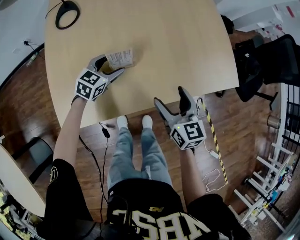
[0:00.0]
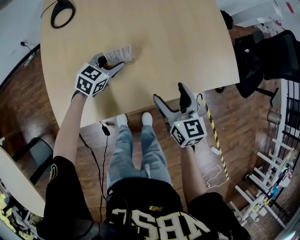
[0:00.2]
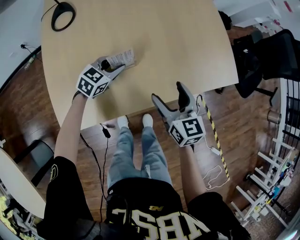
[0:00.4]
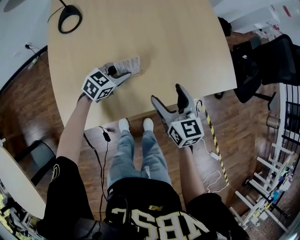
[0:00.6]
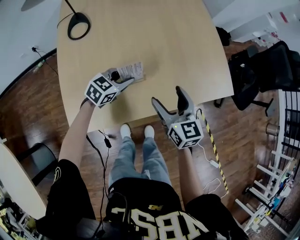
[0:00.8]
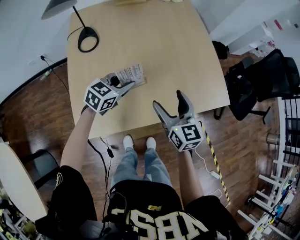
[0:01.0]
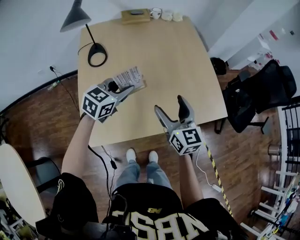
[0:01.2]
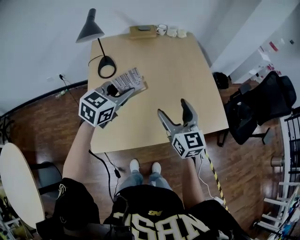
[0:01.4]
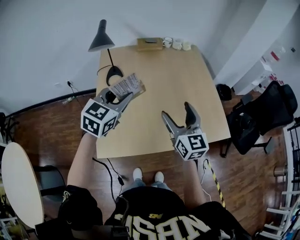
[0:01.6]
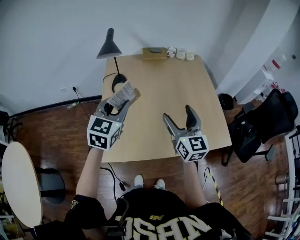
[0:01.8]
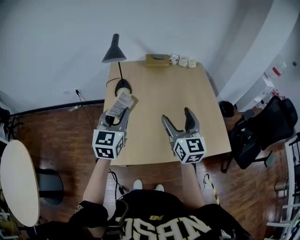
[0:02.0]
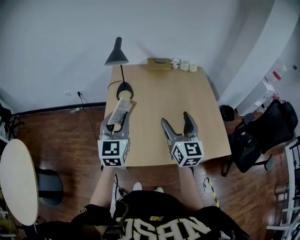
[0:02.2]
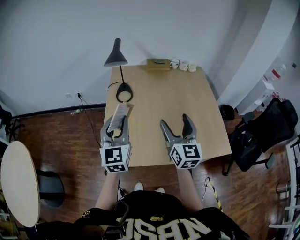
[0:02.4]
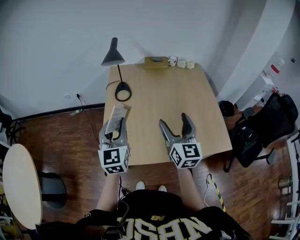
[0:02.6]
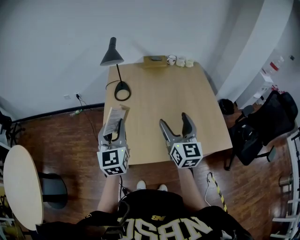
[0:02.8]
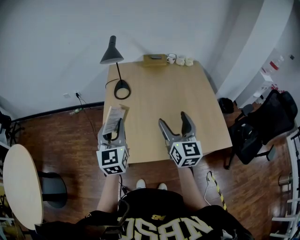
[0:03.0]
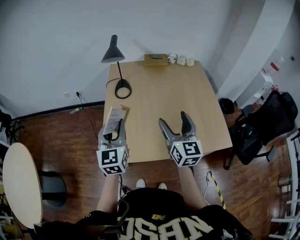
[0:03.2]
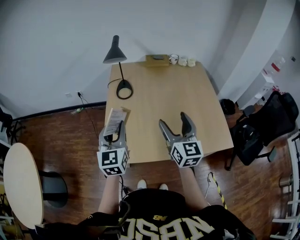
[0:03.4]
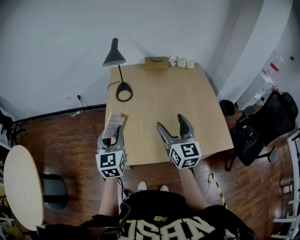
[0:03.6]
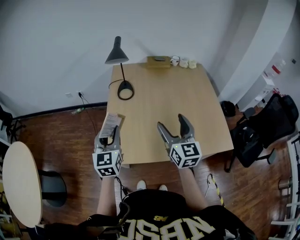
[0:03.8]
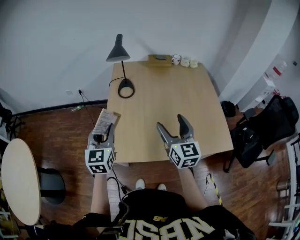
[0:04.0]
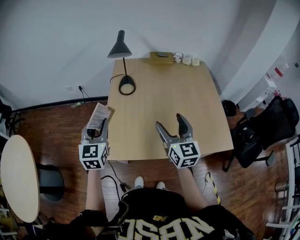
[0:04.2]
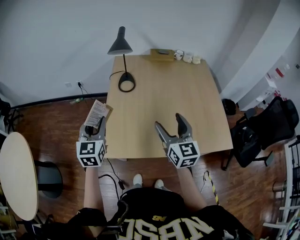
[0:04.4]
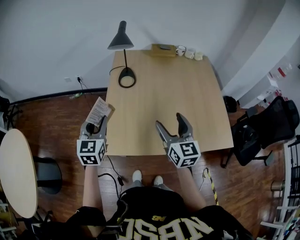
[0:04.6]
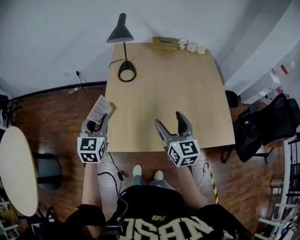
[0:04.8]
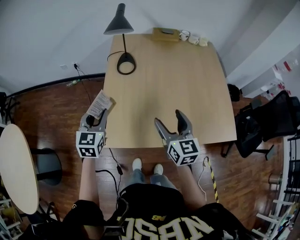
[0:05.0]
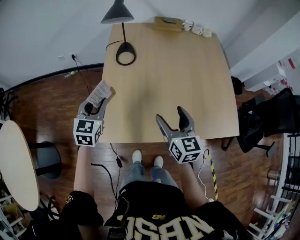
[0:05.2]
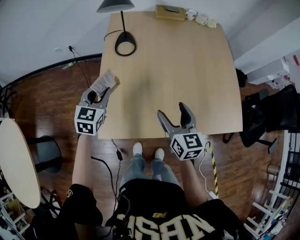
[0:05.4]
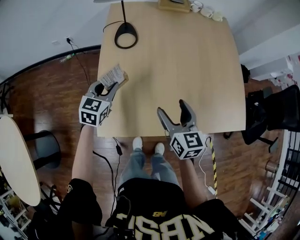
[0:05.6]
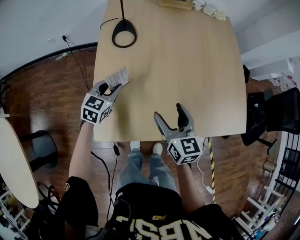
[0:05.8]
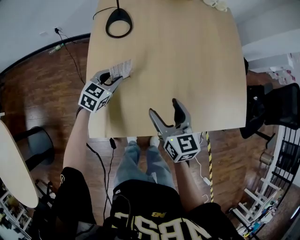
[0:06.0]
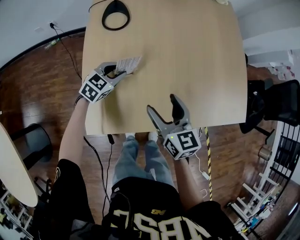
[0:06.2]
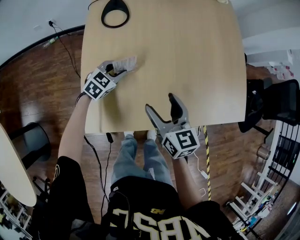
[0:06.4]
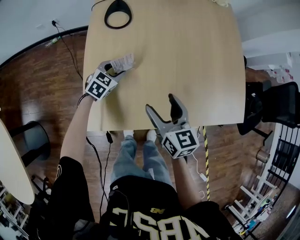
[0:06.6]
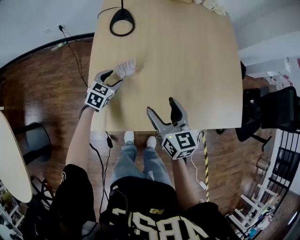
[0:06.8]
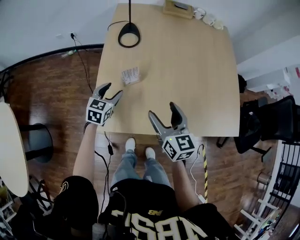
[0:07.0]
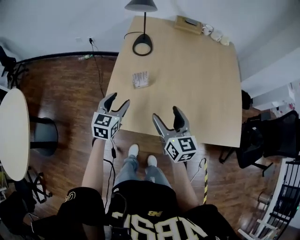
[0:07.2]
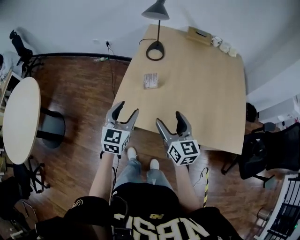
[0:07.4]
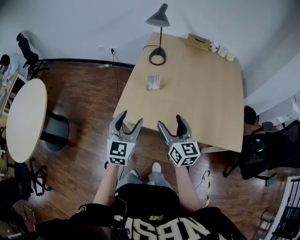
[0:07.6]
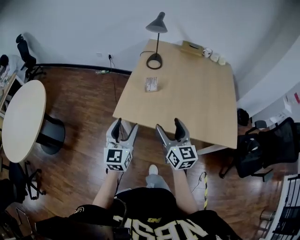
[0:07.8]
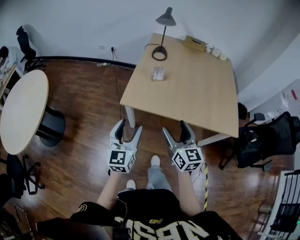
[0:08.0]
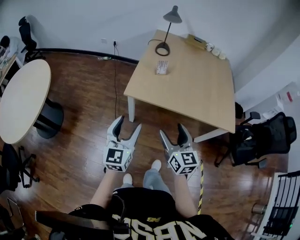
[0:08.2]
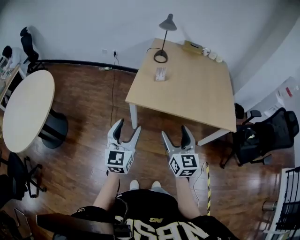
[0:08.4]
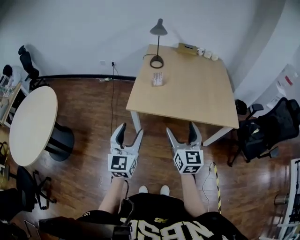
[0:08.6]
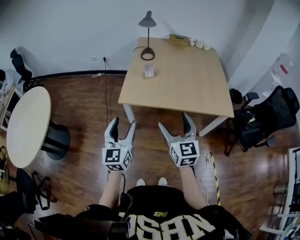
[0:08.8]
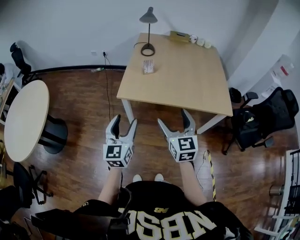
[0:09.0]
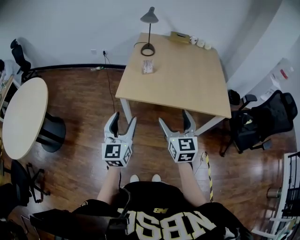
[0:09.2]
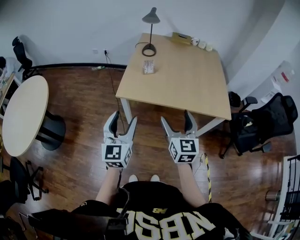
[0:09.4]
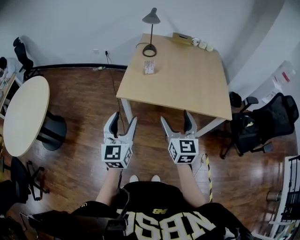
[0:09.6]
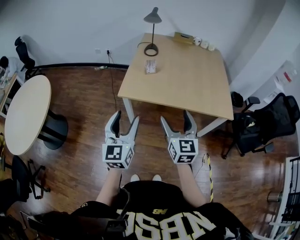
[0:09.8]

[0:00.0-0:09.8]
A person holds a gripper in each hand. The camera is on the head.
0:00.0 to 0:01.4: Both grippers move upward, about 30 cm. The right gripper swivels approximately 20 degrees. Meanwhile the left gripper closes up.
0:01.4 to 0:02.8: The right gripper goes about 5 cm upward, while the left gripper travels to the left, backward and upward by approximately 15 cm, and rotates approximately 50 degrees.
0:02.8 to 0:04.2: The left gripper goes about 10 cm to the left; the right gripper shifts by roughly 5 cm.
0:04.2 to 0:05.6: The left gripper travels downward and forward by roughly 25 cm, and turns by some 30 degrees, while the right gripper is displaced downward by some 15 cm.
0:05.6 to 0:07.0: The left gripper is displaced downward by about 10 cm.
0:07.0 to 0:08.4: Both grippers are carried backward, roughly 50 cm. The left gripper tips its fingers upward by some 30 degrees.
0:08.4 to 0:09.8: Both grippers travel together to the right, about 5 cm.

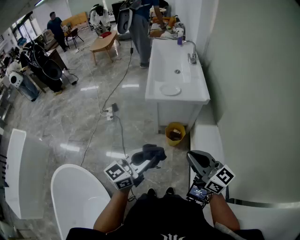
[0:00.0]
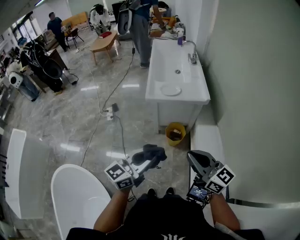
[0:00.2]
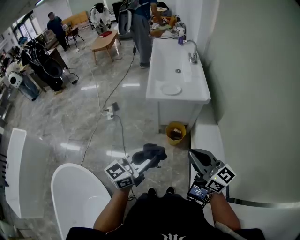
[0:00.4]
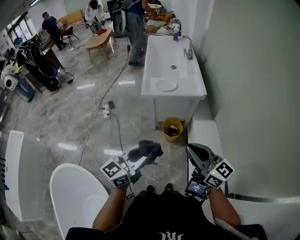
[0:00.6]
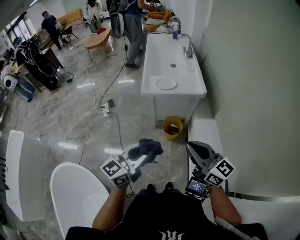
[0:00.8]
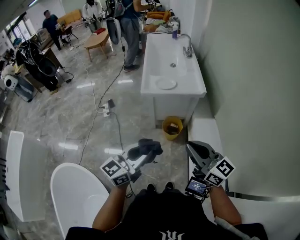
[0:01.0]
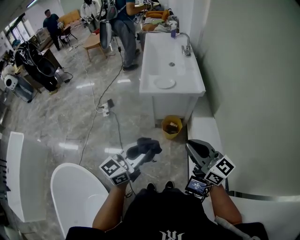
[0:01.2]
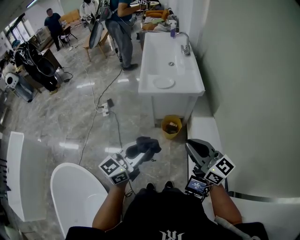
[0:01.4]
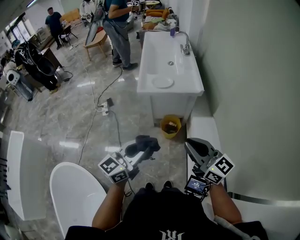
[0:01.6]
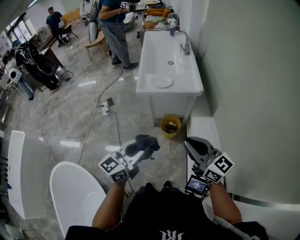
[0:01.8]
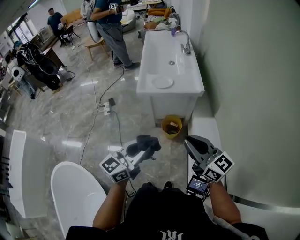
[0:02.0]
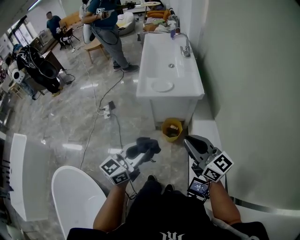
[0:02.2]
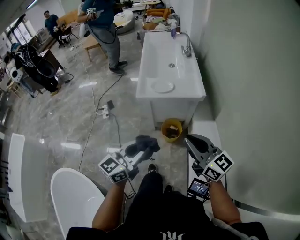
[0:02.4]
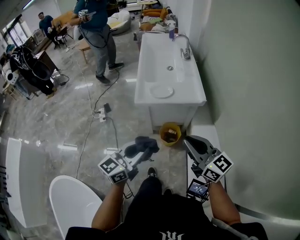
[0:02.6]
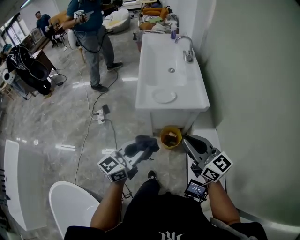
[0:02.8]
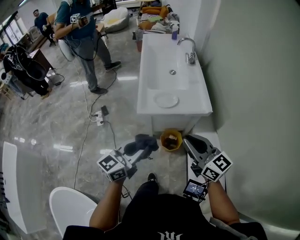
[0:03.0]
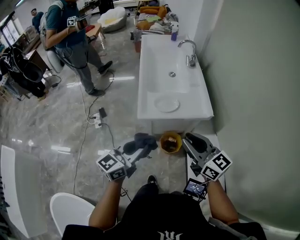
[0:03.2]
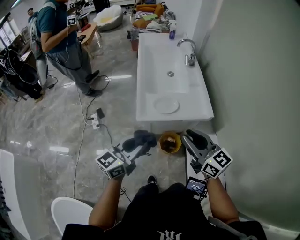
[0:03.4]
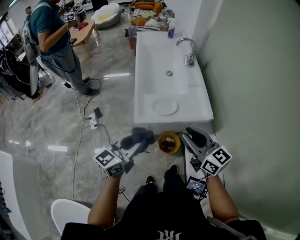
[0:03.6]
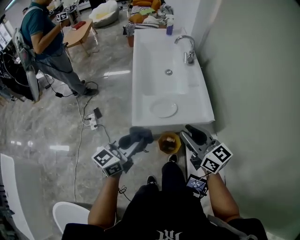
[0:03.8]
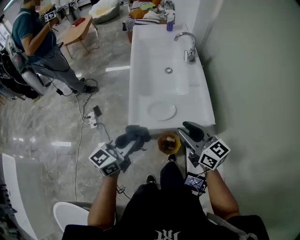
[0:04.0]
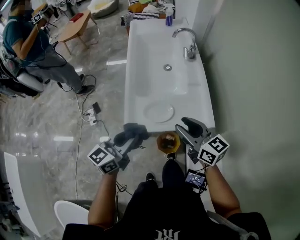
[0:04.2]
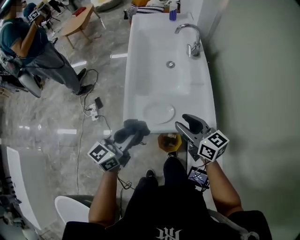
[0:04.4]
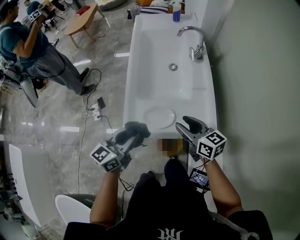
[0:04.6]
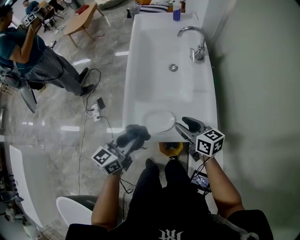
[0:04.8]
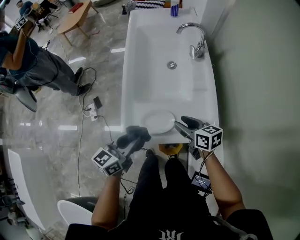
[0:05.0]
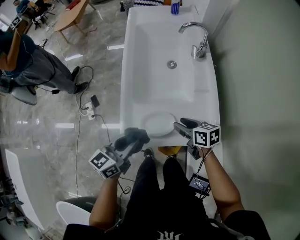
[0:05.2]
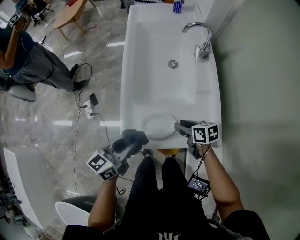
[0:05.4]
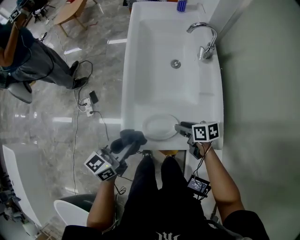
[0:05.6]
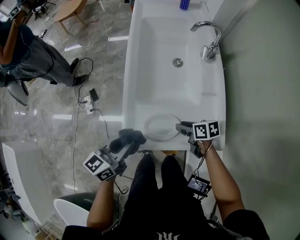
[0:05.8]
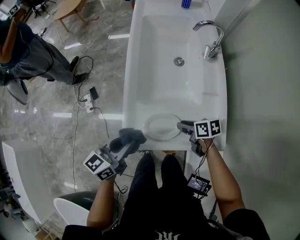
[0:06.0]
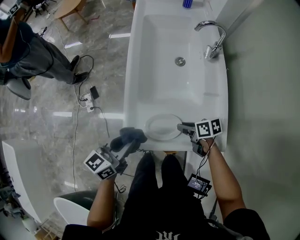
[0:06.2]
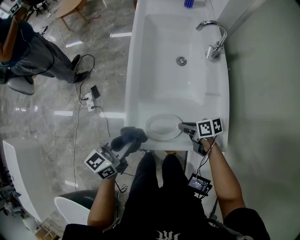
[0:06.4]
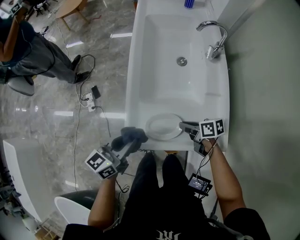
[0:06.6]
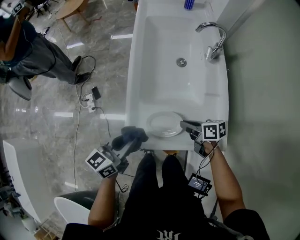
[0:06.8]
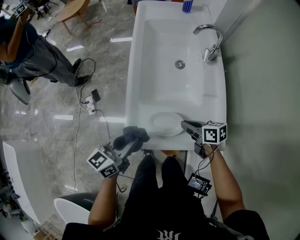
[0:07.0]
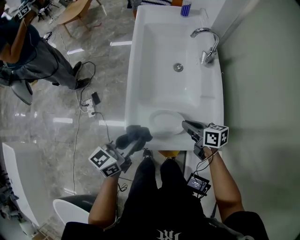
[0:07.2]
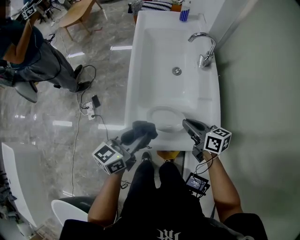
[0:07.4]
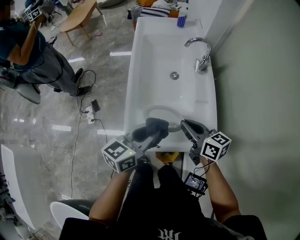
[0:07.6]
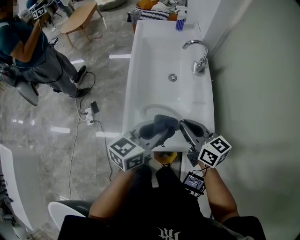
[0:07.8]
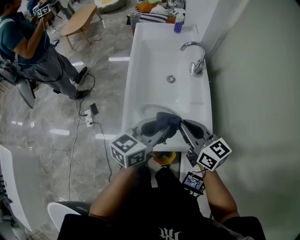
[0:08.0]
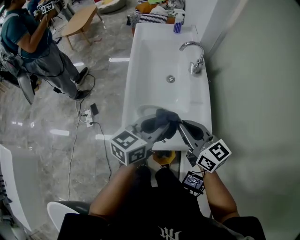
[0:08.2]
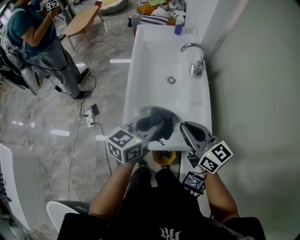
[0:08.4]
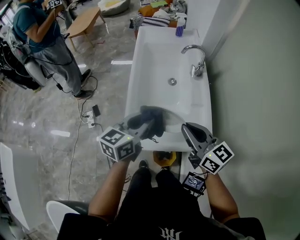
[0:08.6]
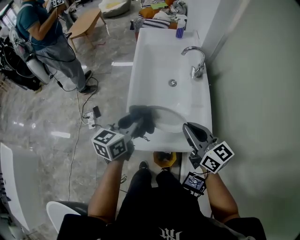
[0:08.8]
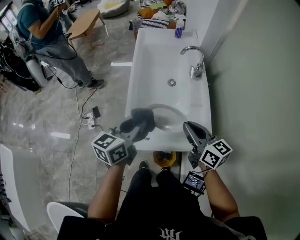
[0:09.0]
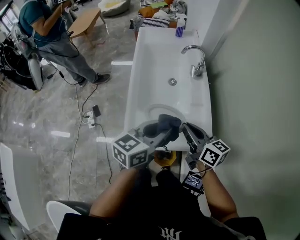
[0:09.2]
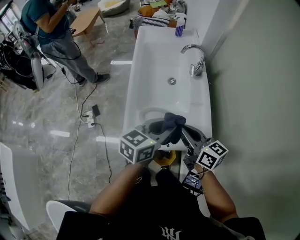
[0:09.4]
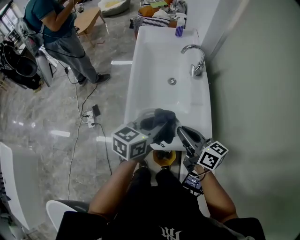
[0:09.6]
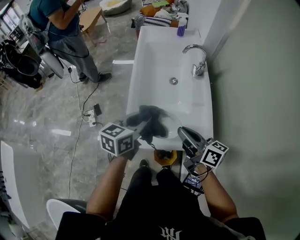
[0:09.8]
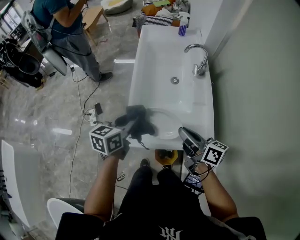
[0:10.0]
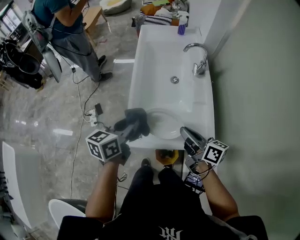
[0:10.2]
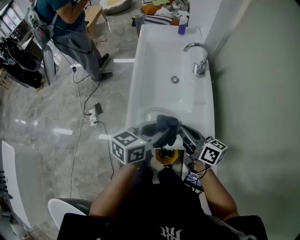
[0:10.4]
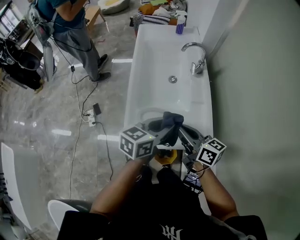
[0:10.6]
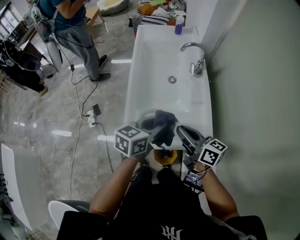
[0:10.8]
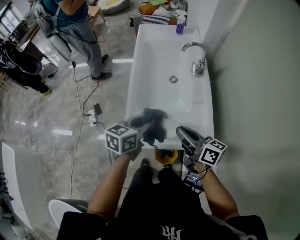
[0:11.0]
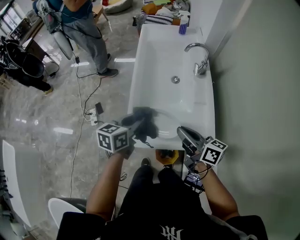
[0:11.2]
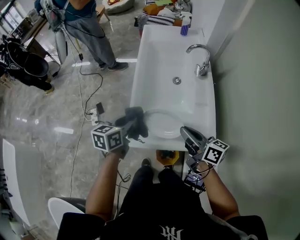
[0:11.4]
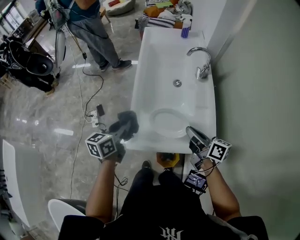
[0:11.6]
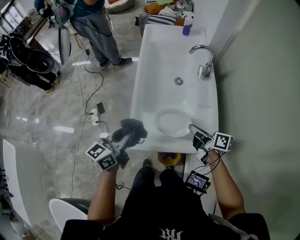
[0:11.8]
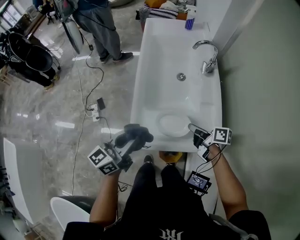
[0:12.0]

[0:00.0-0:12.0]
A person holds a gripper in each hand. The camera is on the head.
0:00.0 to 0:01.6: There are only small adjustments of the grippers.
0:01.6 to 0:03.0: Both grippers move forward, some 25 cm.
0:03.0 to 0:04.4: The two grippers go roughly 30 cm forward. The right gripper opens its fingers.
0:04.4 to 0:06.0: The right gripper is displaced downward and forward by roughly 25 cm, and points its fingers roughly 30 degrees further downward. The left gripper travels downward and forward by approximately 15 cm.
0:06.0 to 0:07.6: The left gripper shifts some 15 cm to the right and upward; the right gripper goes approximately 20 cm upward, rotates approximately 40 degrees, and closes its fingers.
0:07.6 to 0:09.0: The right gripper heads upward, covering approximately 5 cm; the left gripper moves some 5 cm.
0:09.0 to 0:10.4: The left gripper goes left and right, approximately 15 cm each way, reversing 2 times.
0:10.4 to 0:12.0: The left gripper moves to the left, about 15 cm. Meanwhile the right gripper heads downward, covering about 10 cm, and rotates approximately 30 degrees.

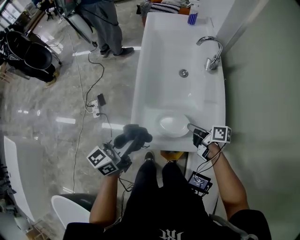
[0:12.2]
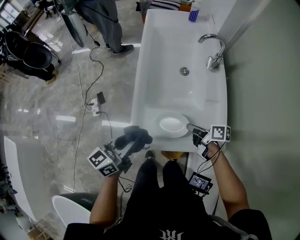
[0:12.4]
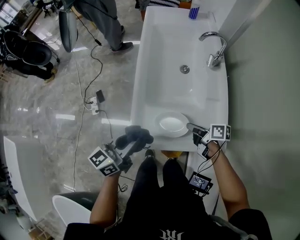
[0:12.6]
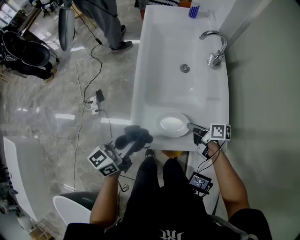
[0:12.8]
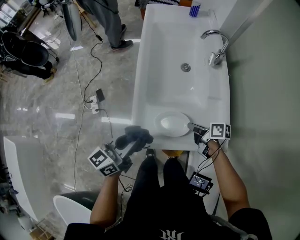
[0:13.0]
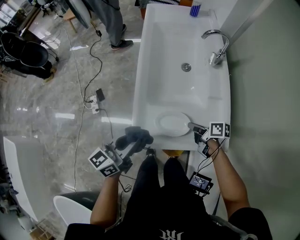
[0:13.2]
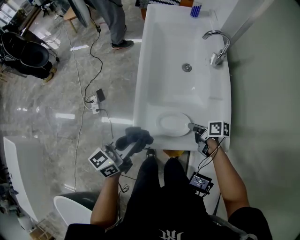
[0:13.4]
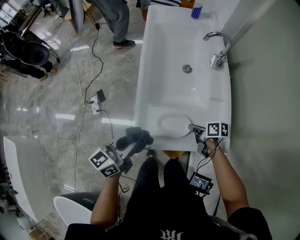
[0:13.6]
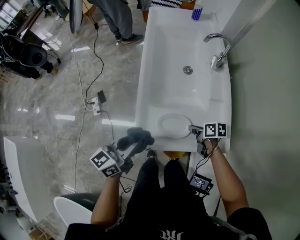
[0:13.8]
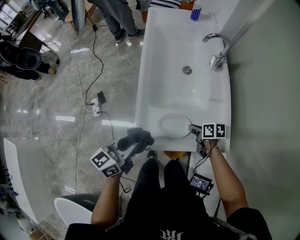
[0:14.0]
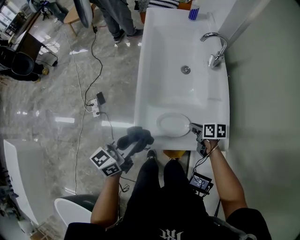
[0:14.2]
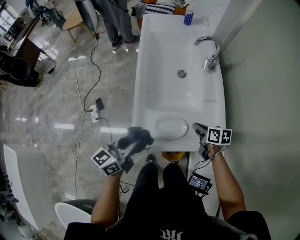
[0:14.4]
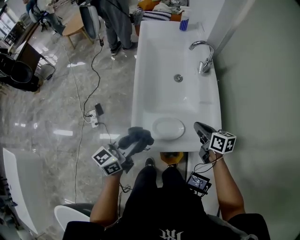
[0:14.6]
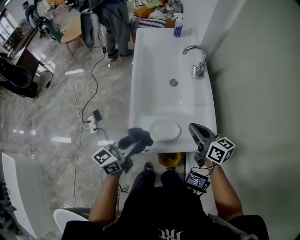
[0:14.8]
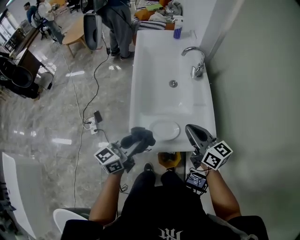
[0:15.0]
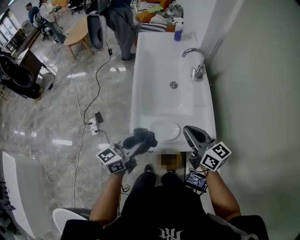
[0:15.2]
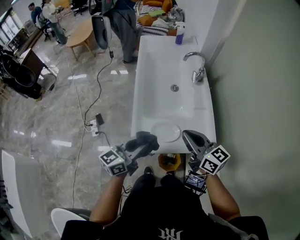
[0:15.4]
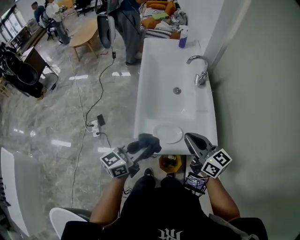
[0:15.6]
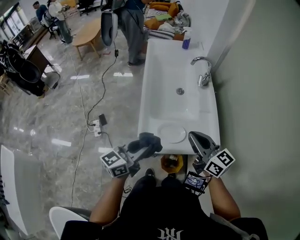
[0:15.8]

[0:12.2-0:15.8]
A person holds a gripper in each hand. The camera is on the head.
0:12.2 to 0:14.0: The right gripper is displaced downward by some 10 cm, and swivels some 30 degrees.
0:14.0 to 0:15.8: The left gripper travels upward and backward by about 10 cm; the right gripper moves upward, approximately 30 cm, and angles its fingers upward, by about 40 degrees.
